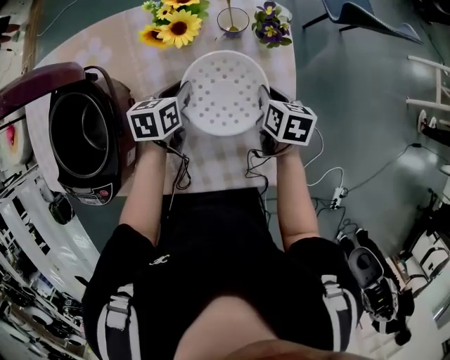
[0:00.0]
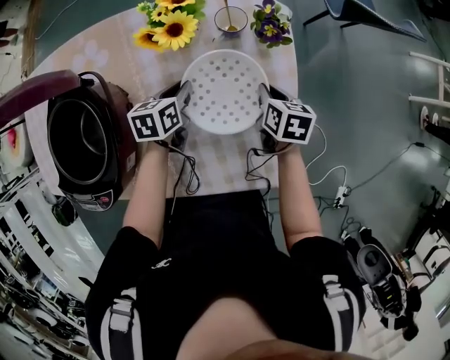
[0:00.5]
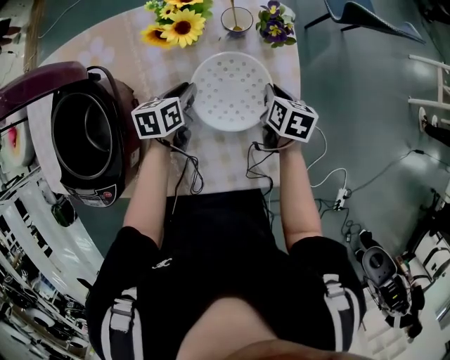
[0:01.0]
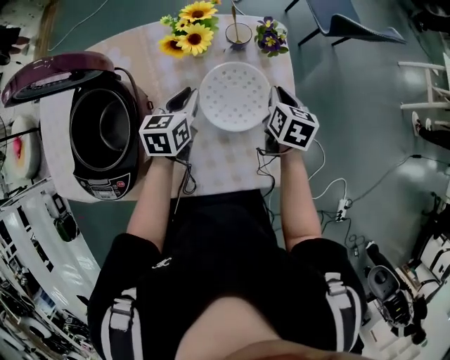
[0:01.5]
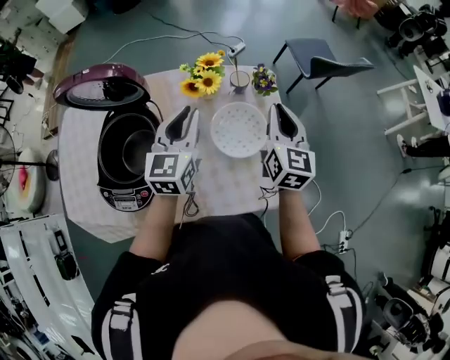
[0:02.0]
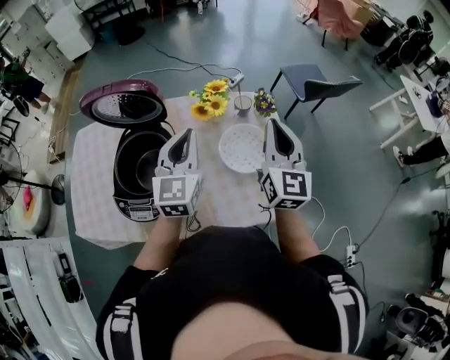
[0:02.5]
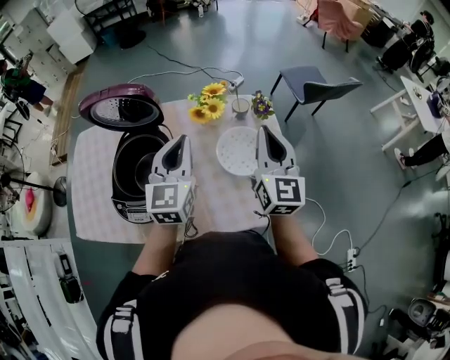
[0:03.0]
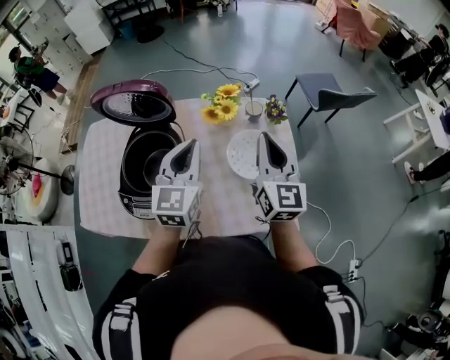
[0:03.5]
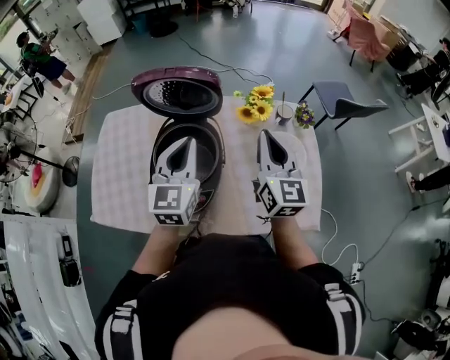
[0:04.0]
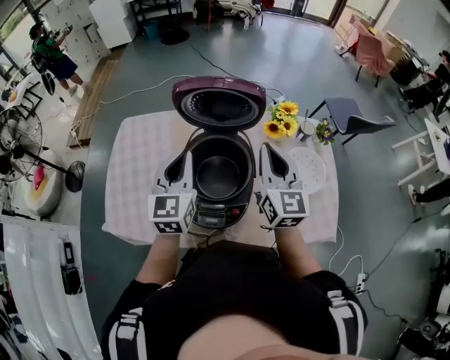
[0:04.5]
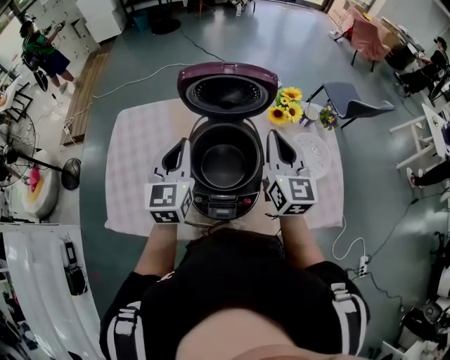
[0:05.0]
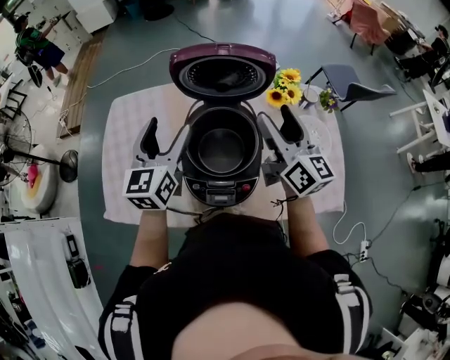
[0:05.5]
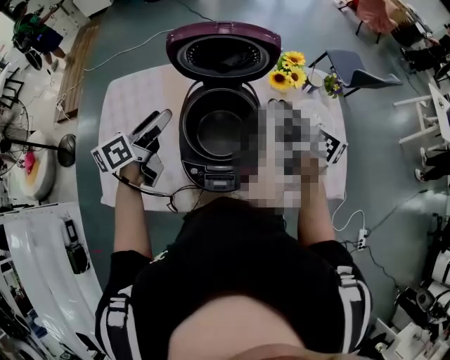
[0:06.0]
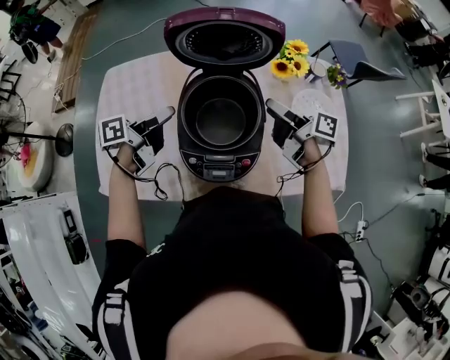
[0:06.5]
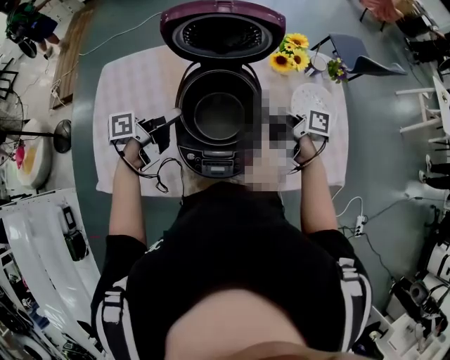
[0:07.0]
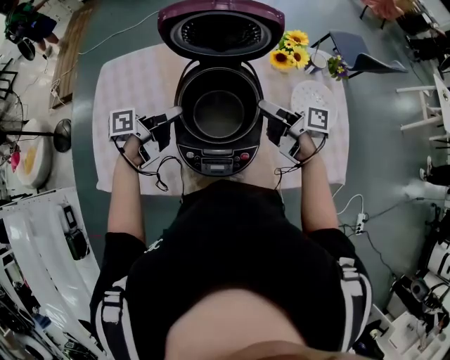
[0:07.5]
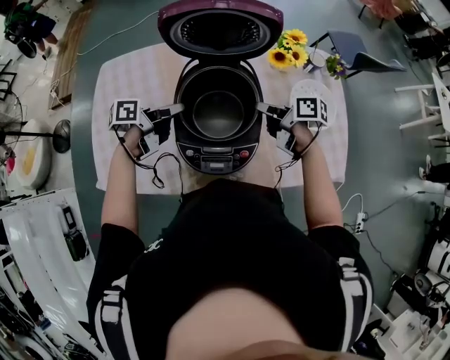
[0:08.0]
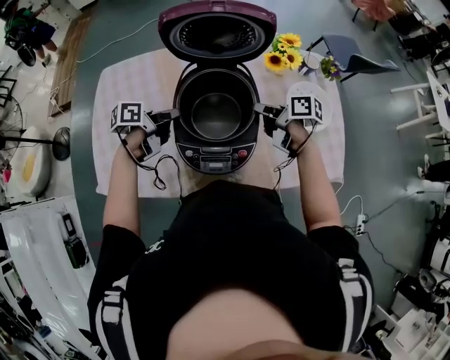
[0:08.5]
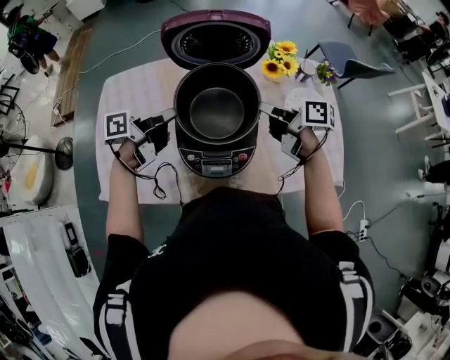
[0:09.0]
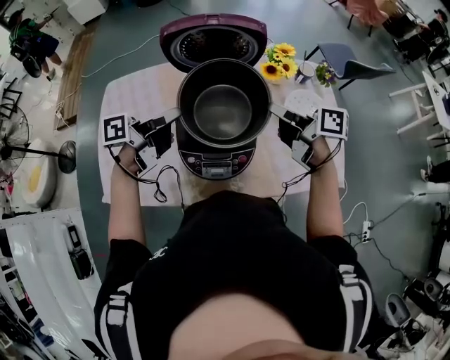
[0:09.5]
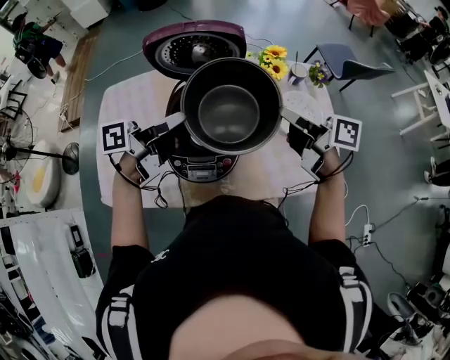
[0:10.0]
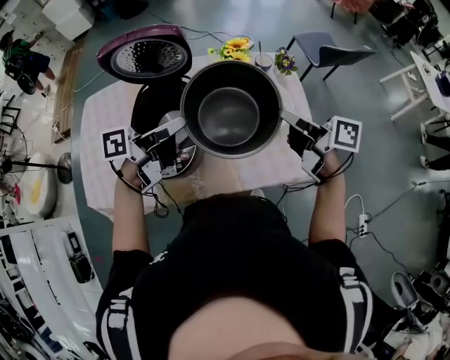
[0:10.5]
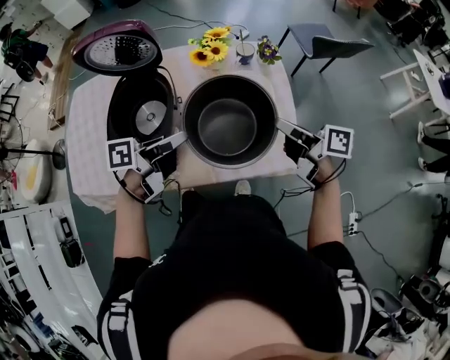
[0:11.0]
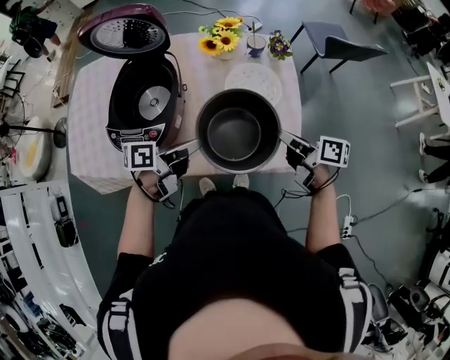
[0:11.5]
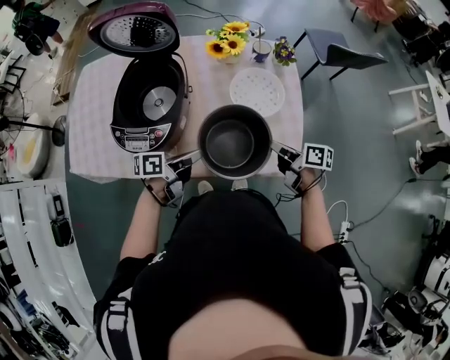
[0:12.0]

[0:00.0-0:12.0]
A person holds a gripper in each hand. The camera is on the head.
0:00.0 to 0:02.0: The grippers both shift upward by roughly 30 cm. The right gripper tilts its fingers approximately 40 degrees upward, while the left gripper angles its fingers upward, by roughly 40 degrees.
0:02.0 to 0:04.0: The right gripper goes some 20 cm to the left. The left gripper moves to the left and backward, about 20 cm.
0:04.0 to 0:06.0: The left gripper heads to the left and downward, covering approximately 25 cm, rolls counterclockwise, seen from behind, by about 50 degrees, and opens its fingers. Meanwhile the right gripper travels to the left and downward by roughly 15 cm, twists roughly 40 degrees clockwise, seen from behind, and opens its fingers.
0:06.0 to 0:08.0: The two grippers go approximately 15 cm downward. The right gripper swivels about 40 degrees, and closes; the left gripper swivels about 40 degrees.
0:08.0 to 0:10.0: The two grippers go about 20 cm upward and to the right. The left gripper changes its angle by some 20 degrees; the right gripper turns by about 20 degrees.
0:10.0 to 0:12.0: The left gripper shifts approximately 35 cm to the right, downward and backward. The right gripper travels to the right and downward by about 35 cm, and changes its angle by approximately 30 degrees.

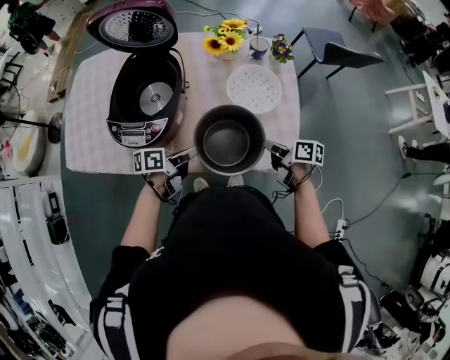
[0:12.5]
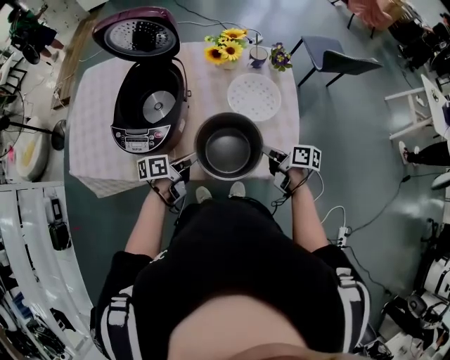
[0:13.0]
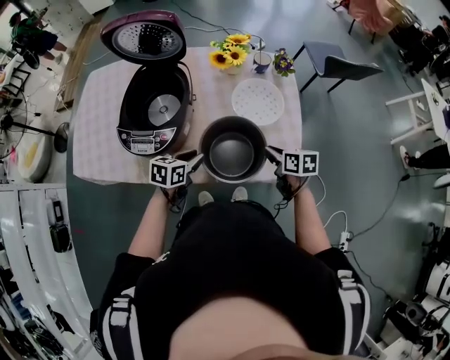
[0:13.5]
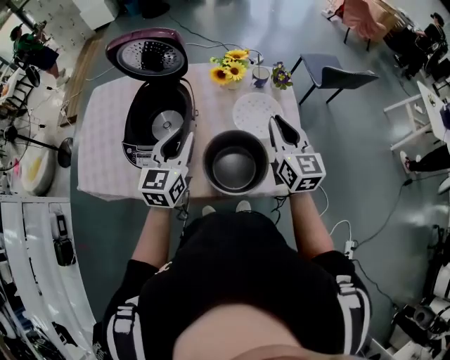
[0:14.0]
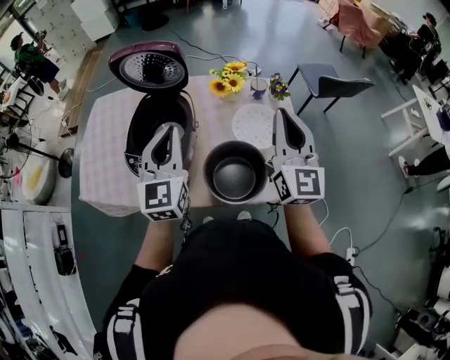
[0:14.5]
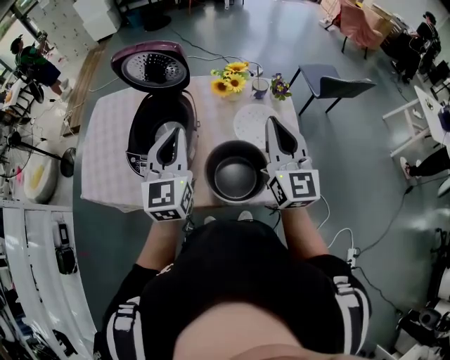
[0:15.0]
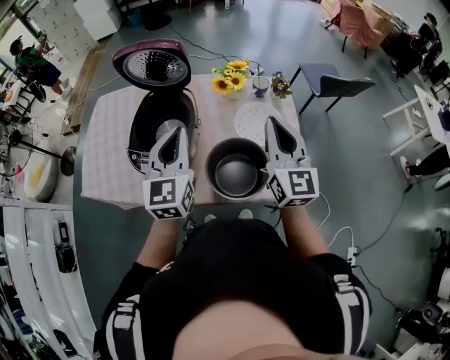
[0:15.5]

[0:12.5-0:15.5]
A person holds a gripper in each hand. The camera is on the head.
0:12.5 to 0:14.0: Both grippers move upward, approximately 20 cm. The right gripper rotates roughly 70 degrees. Meanwhile the left gripper rotates around the line of its fingers by roughly 60 degrees, clockwise from behind.
0:14.0 to 0:15.5: The grippers both shift upward by some 10 cm.

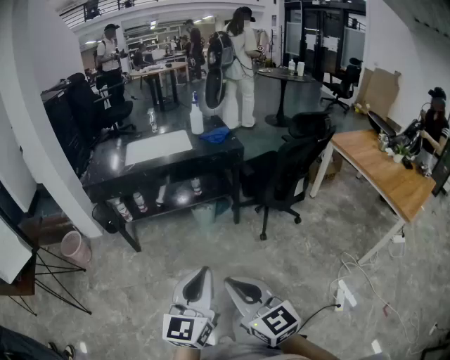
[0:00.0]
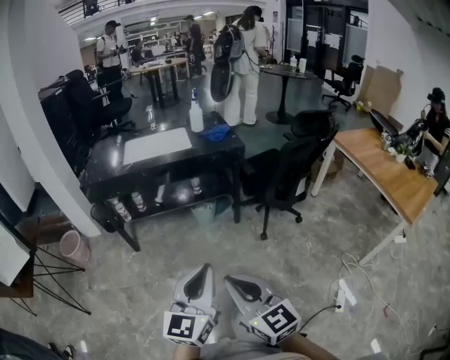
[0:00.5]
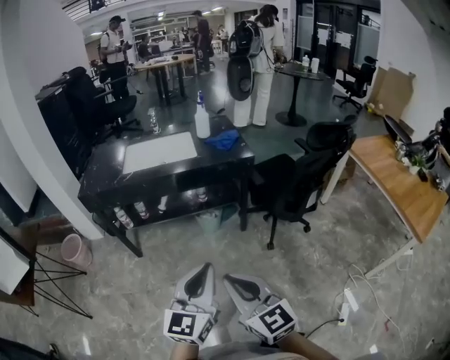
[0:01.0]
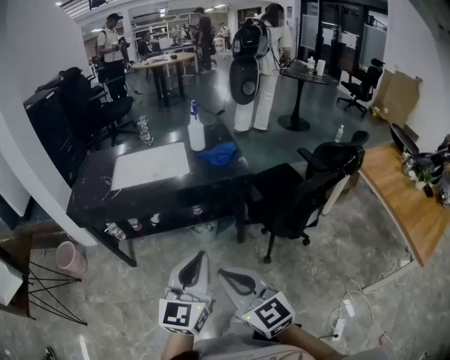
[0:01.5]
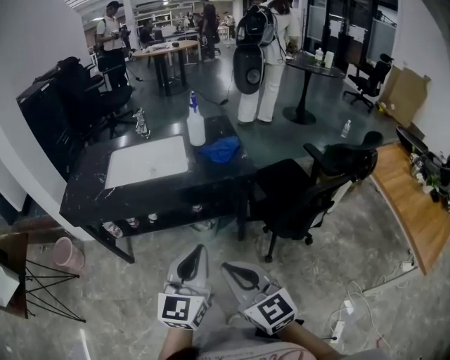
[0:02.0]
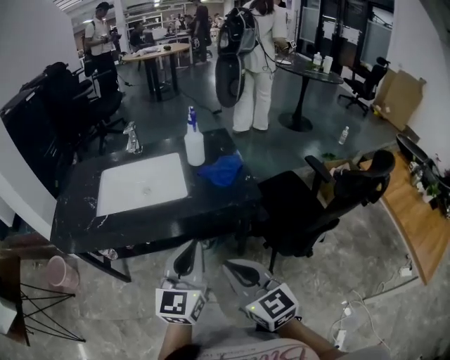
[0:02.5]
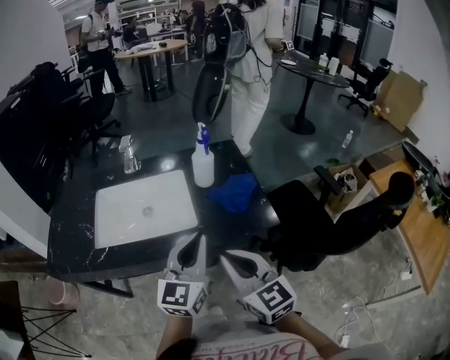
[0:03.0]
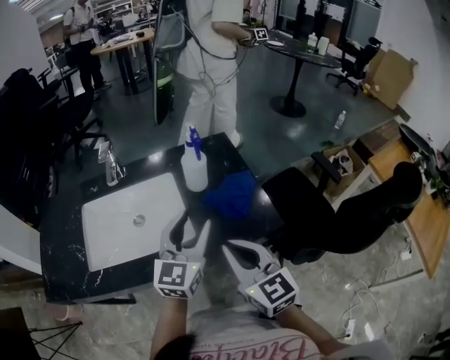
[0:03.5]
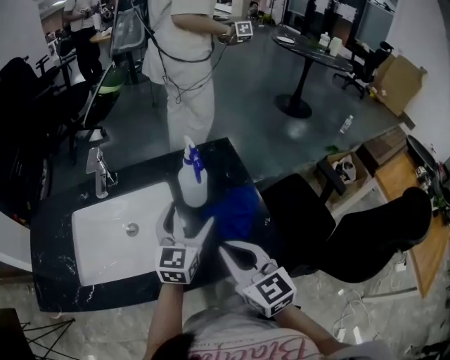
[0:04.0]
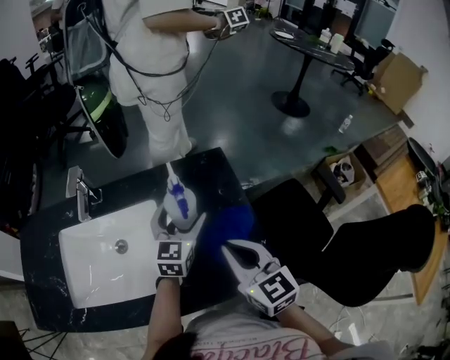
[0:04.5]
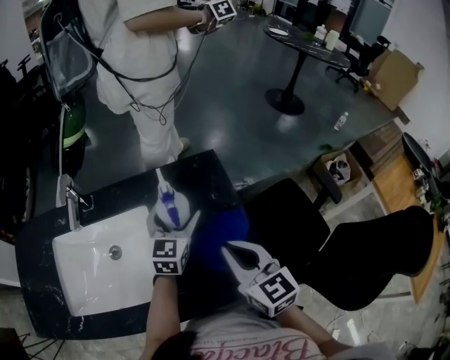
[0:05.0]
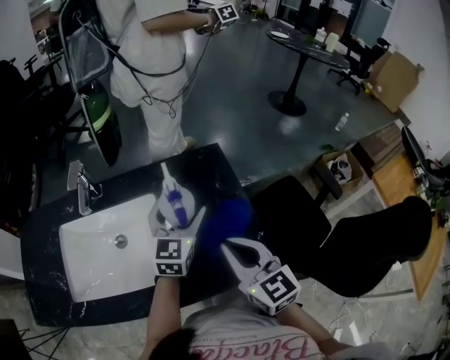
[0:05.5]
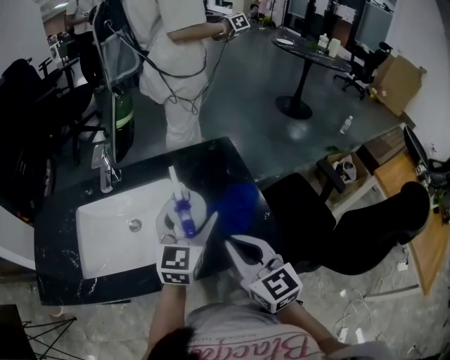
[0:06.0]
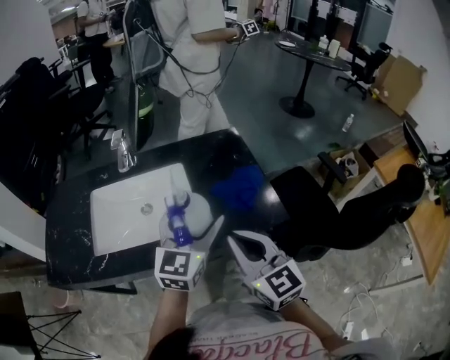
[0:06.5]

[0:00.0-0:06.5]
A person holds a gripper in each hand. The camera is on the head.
0:00.0 to 0:02.0: Both grippers travel together forward, some 30 cm.
0:02.0 to 0:04.5: Both grippers are carried forward, about 50 cm. The left gripper opens its fingers.
0:04.5 to 0:06.5: The left gripper moves backward and upward, approximately 20 cm; the right gripper moves backward and to the left, about 15 cm.

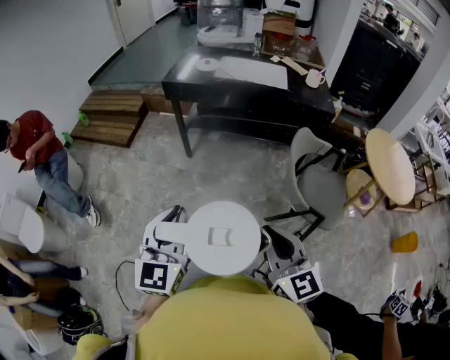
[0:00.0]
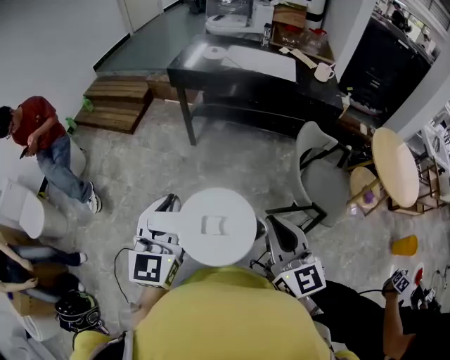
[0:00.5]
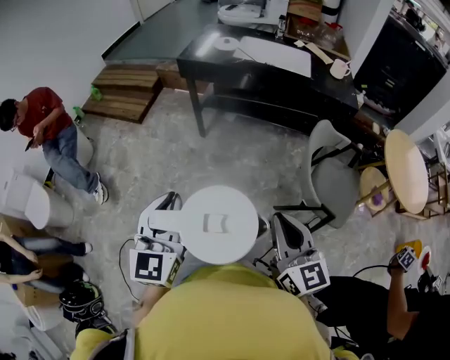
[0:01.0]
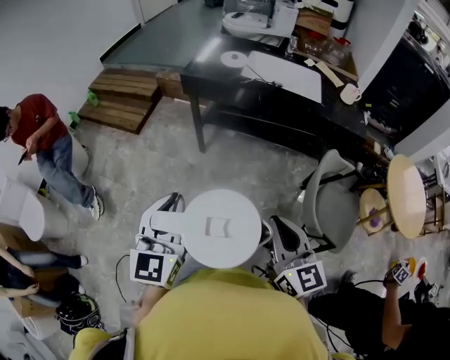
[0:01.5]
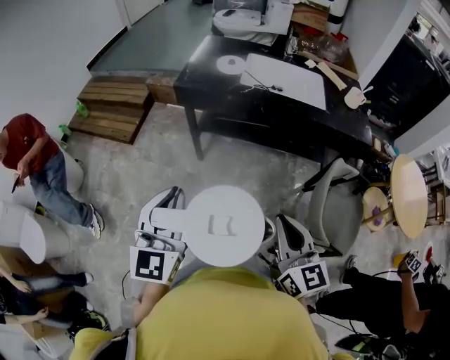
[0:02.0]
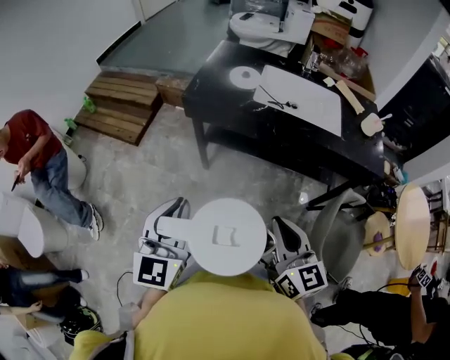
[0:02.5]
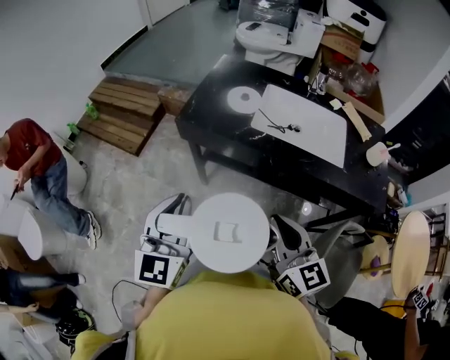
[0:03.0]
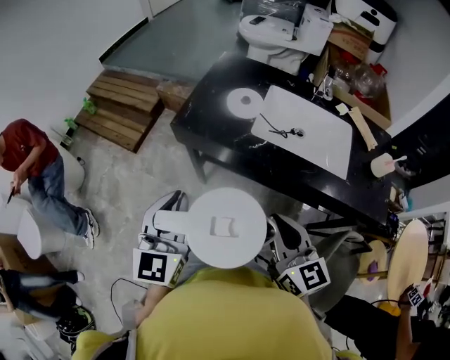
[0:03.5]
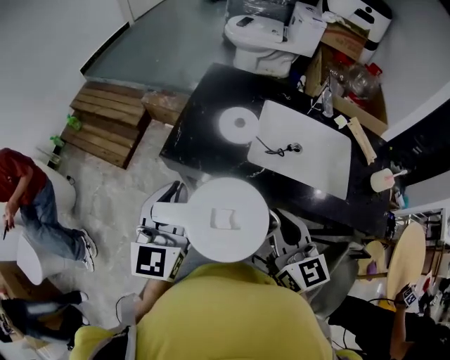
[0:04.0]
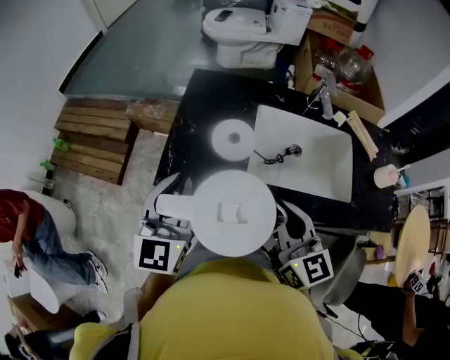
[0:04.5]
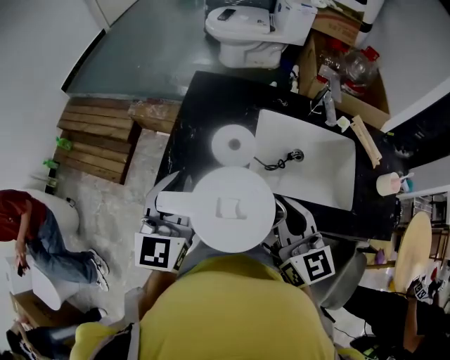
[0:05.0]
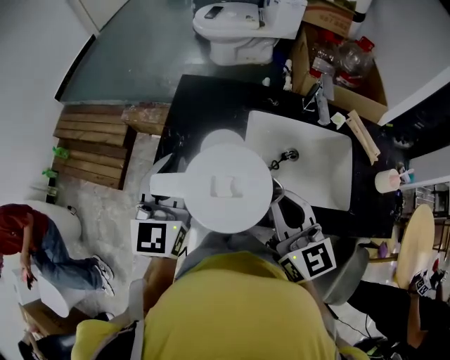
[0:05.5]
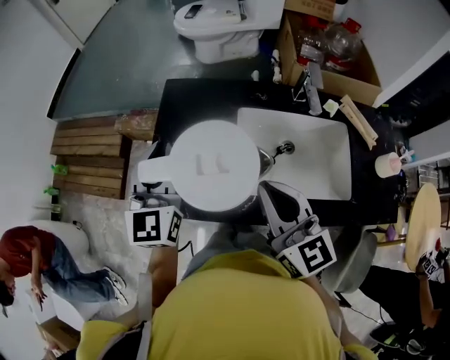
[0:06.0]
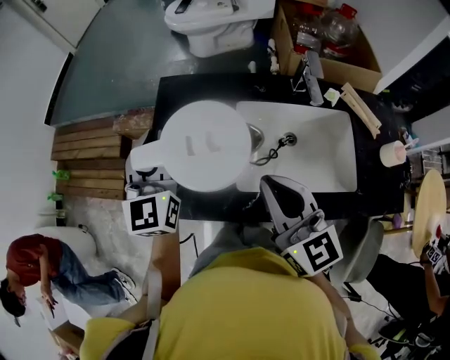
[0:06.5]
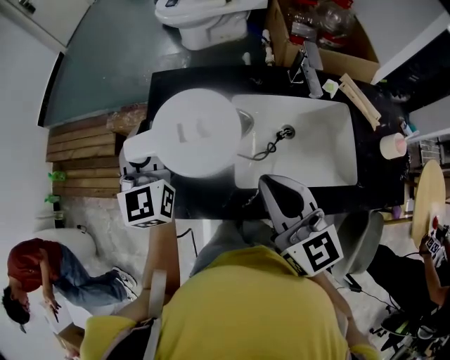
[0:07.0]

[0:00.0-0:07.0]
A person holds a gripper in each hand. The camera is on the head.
0:00.0 to 0:02.0: Both grippers travel together forward, some 25 cm.
0:02.0 to 0:03.5: Both grippers move forward, some 30 cm.
0:03.5 to 0:05.0: The grippers both shift forward by some 25 cm.
0:05.0 to 0:07.0: The right gripper goes about 5 cm forward, while the left gripper is displaced forward by roughly 20 cm.
